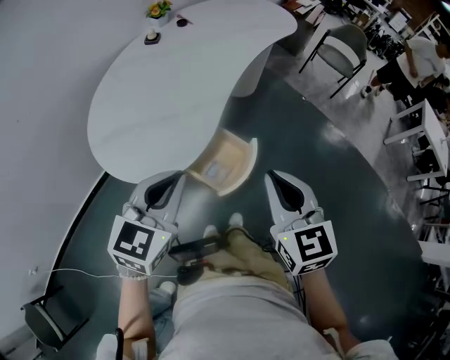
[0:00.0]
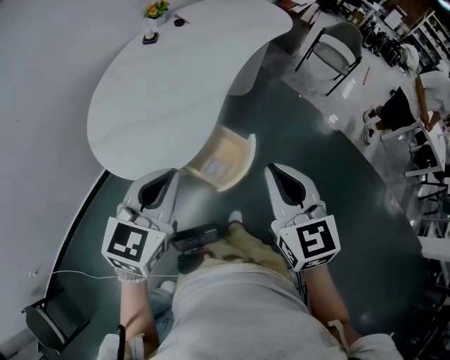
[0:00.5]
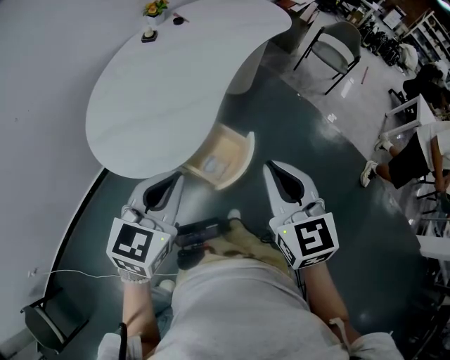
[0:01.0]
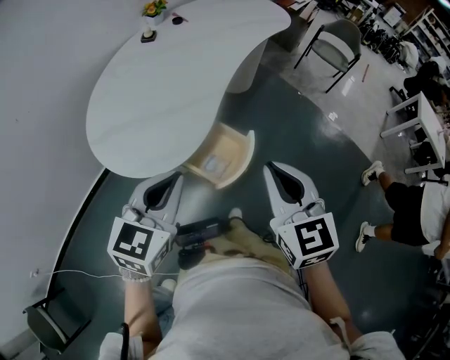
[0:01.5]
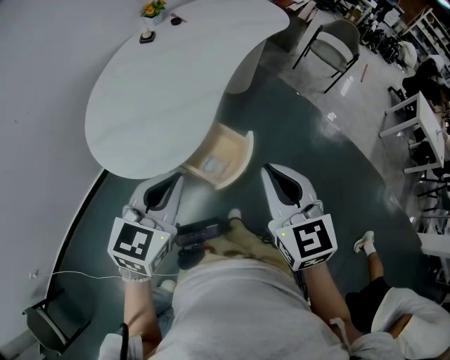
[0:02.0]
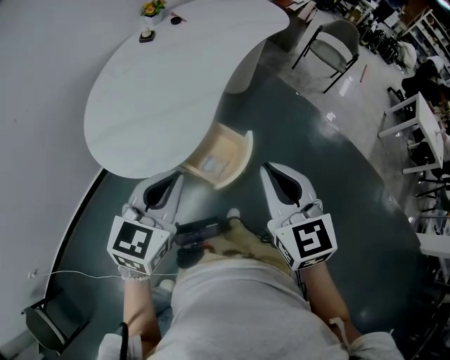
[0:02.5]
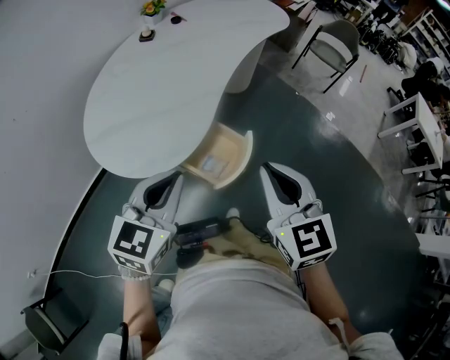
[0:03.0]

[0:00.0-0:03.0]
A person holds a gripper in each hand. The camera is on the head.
0:00.0 to 0:01.5: The grippers move only a little.
0:01.5 to 0:03.0: Both grippers stay about where they are.

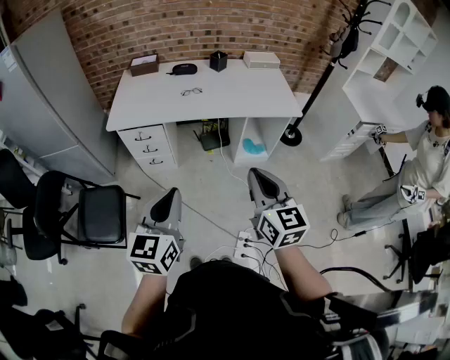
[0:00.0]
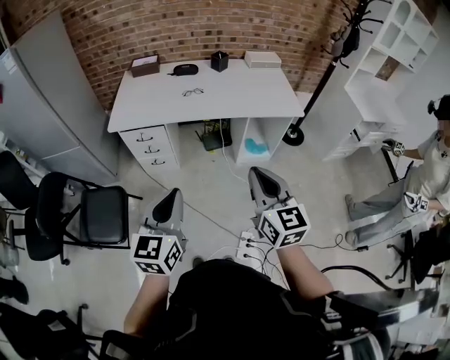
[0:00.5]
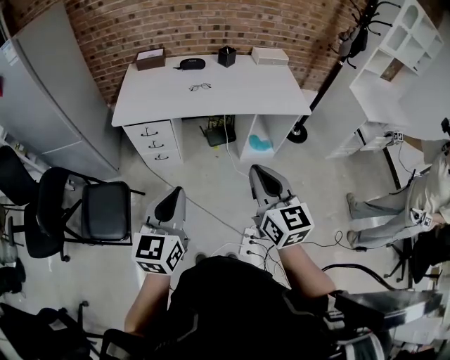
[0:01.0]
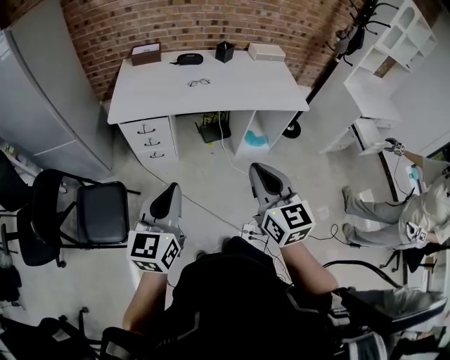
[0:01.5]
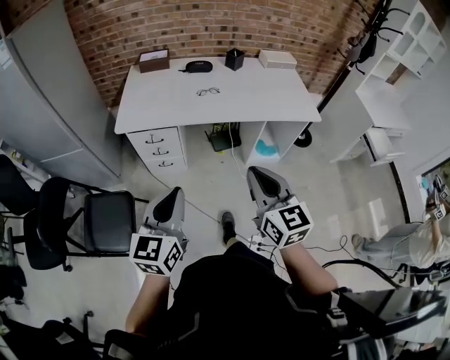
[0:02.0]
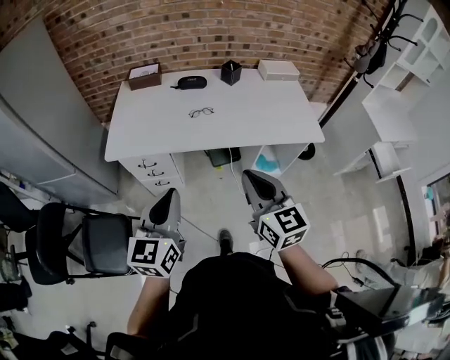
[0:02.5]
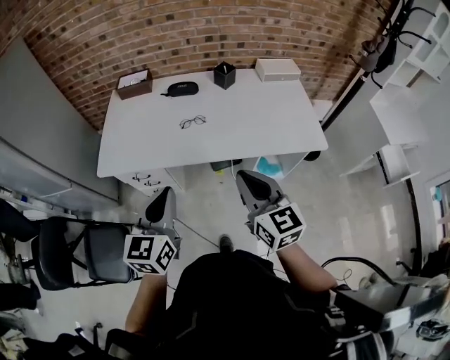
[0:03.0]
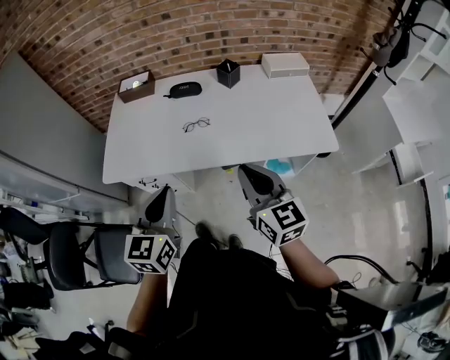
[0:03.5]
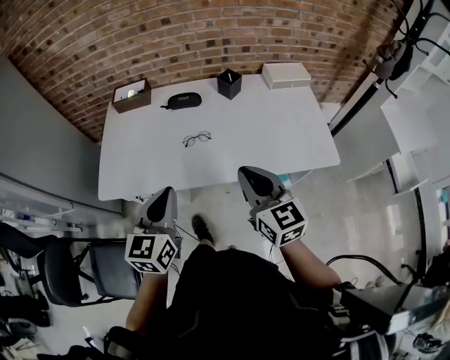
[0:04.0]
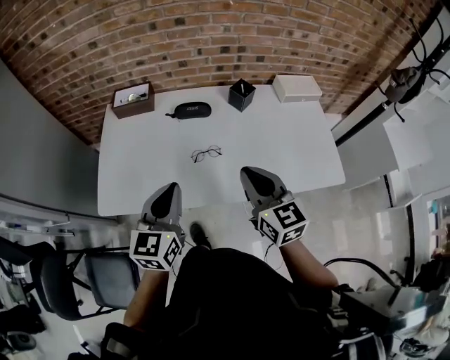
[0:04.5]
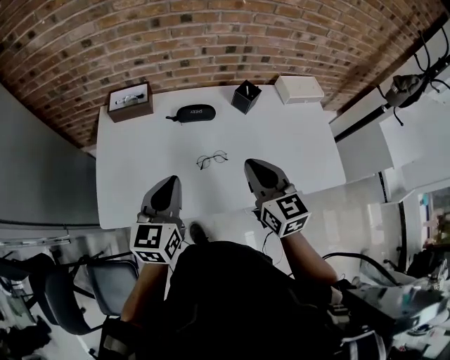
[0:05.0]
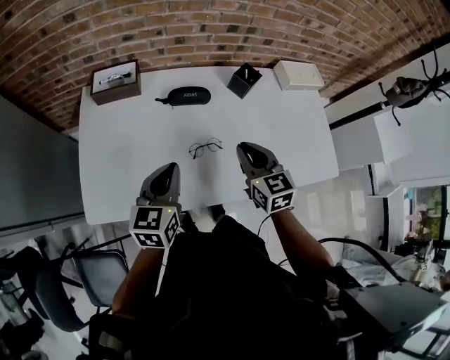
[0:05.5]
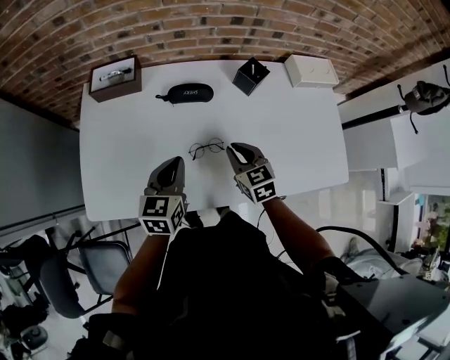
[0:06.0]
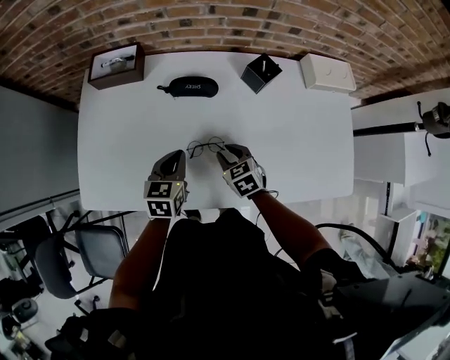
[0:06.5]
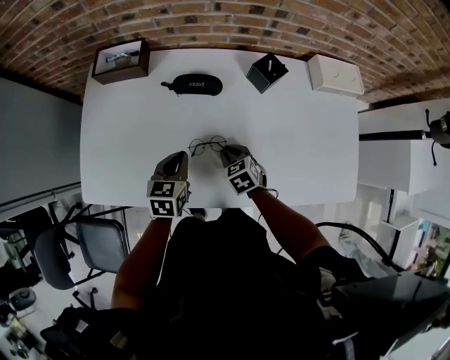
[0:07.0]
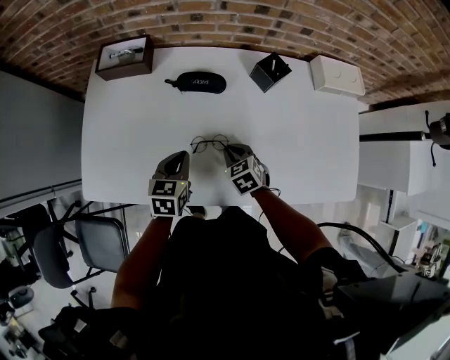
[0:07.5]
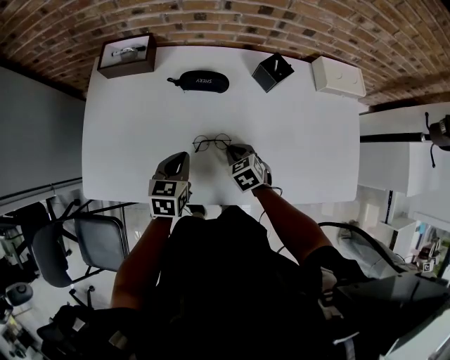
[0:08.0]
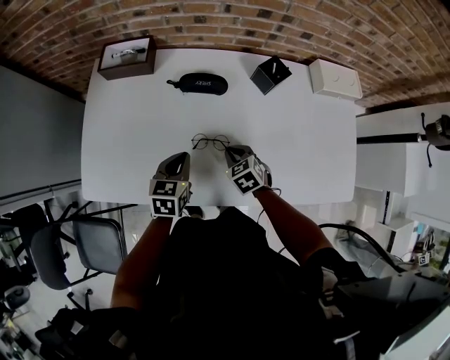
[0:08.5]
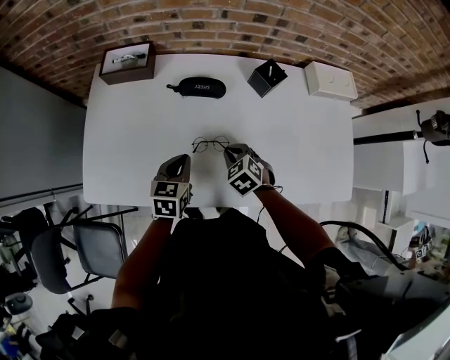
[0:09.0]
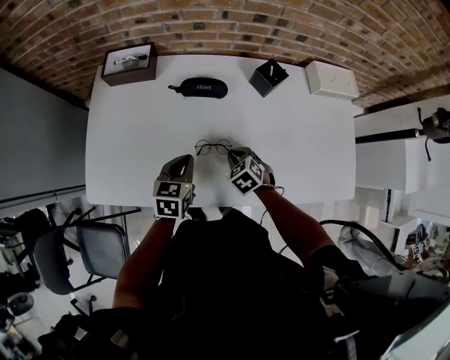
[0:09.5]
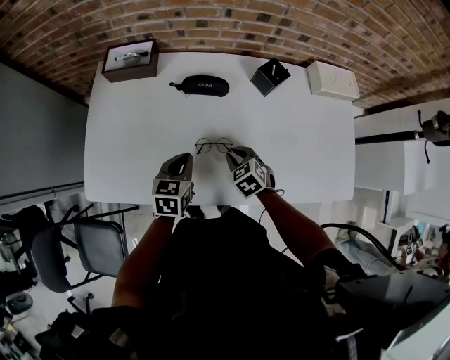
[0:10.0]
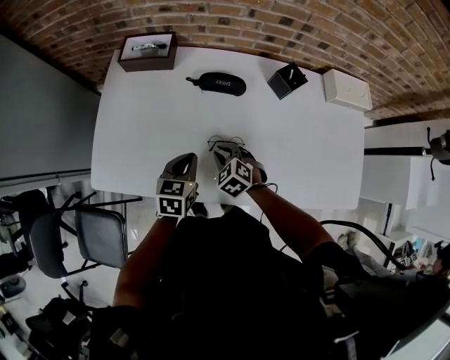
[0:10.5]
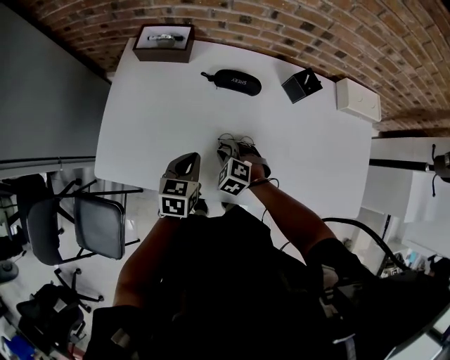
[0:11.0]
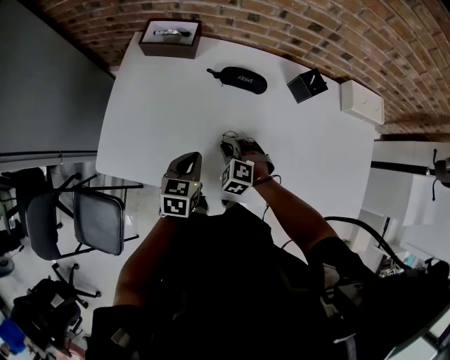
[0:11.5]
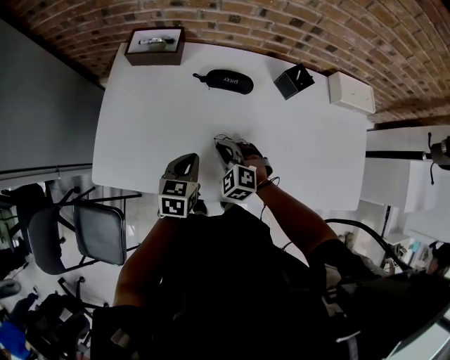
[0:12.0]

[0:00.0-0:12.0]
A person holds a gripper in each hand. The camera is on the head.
0:00.0 to 0:02.0: Both grippers move to the left and forward, some 15 cm.
0:02.0 to 0:04.0: Both grippers travel together forward, approximately 35 cm.
0:04.0 to 0:06.0: The two grippers go some 30 cm forward and downward. The right gripper rotates roughly 30 degrees.
0:06.0 to 0:08.0: The grippers both shift downward by about 10 cm. The right gripper changes its angle by some 30 degrees.
0:08.0 to 0:10.0: The grippers stay close to where they were, moving slightly.
0:10.0 to 0:12.0: The right gripper goes roughly 10 cm to the left, and swivels about 40 degrees.

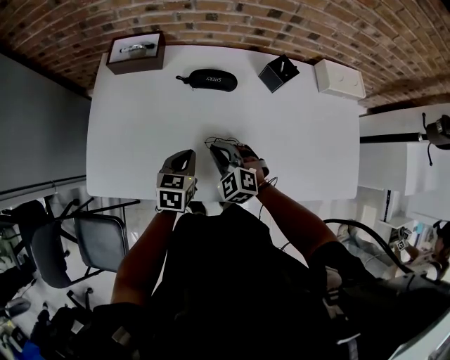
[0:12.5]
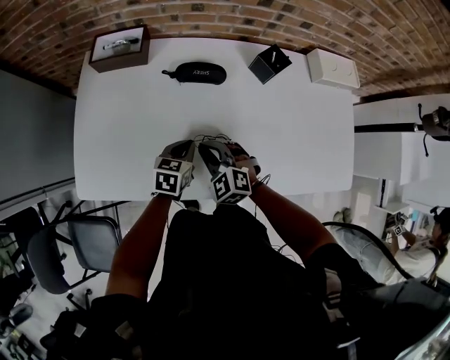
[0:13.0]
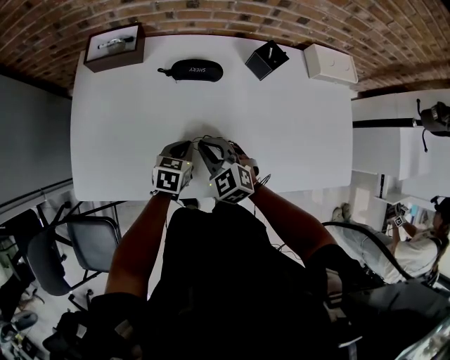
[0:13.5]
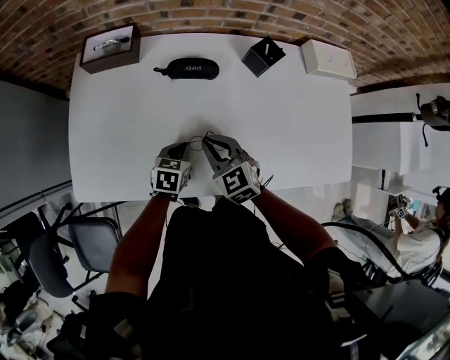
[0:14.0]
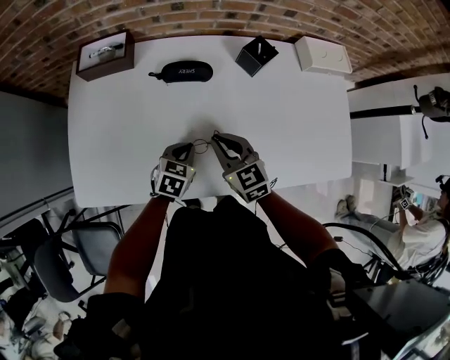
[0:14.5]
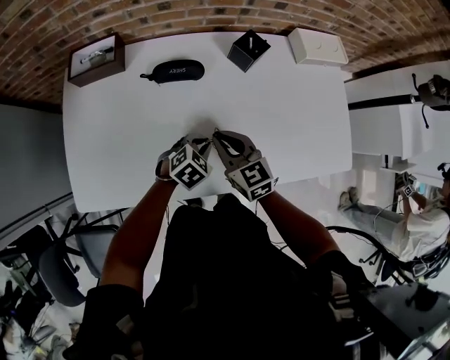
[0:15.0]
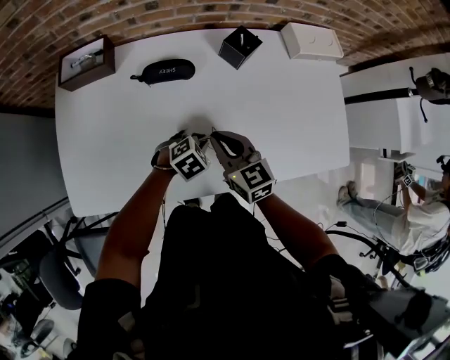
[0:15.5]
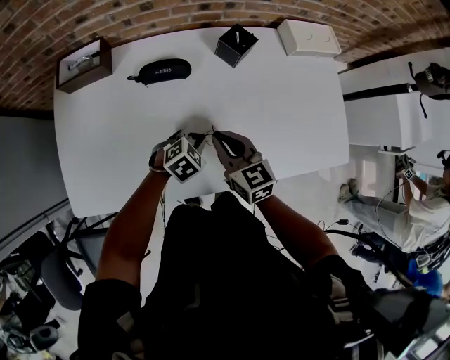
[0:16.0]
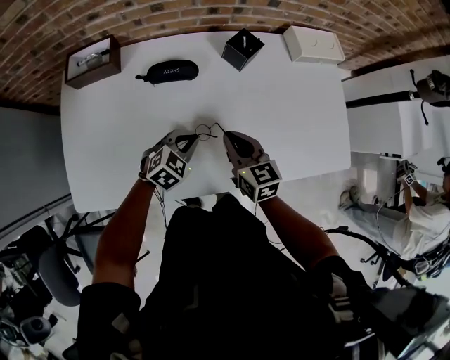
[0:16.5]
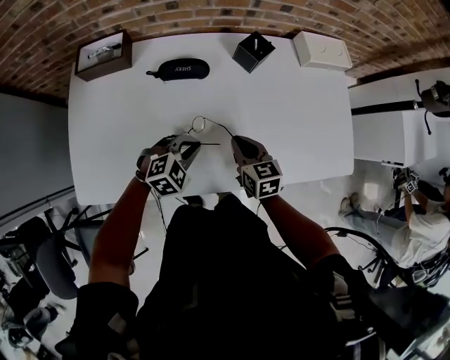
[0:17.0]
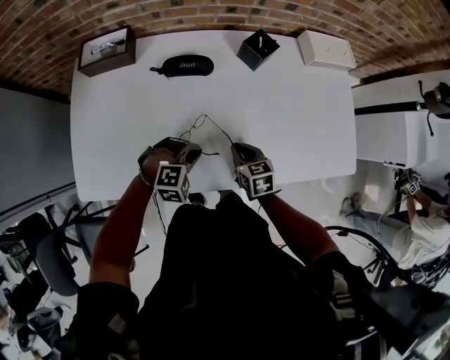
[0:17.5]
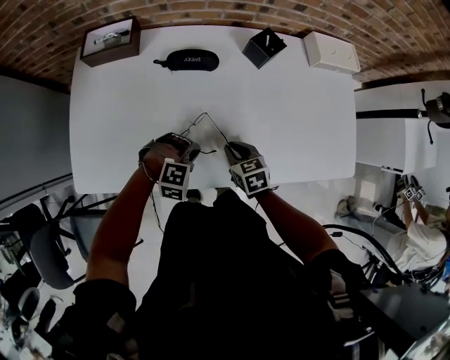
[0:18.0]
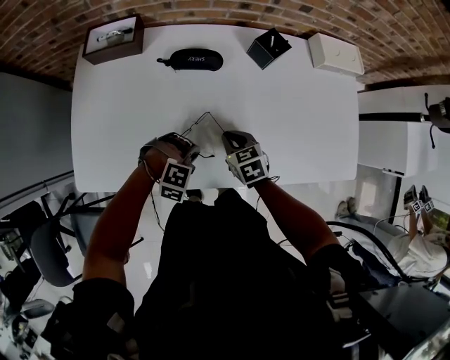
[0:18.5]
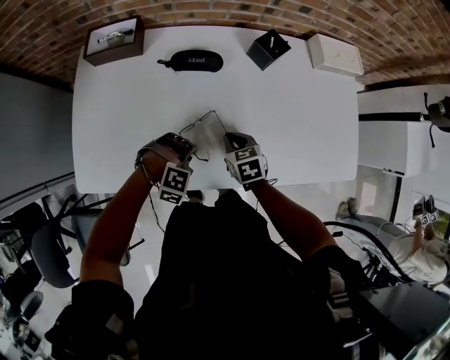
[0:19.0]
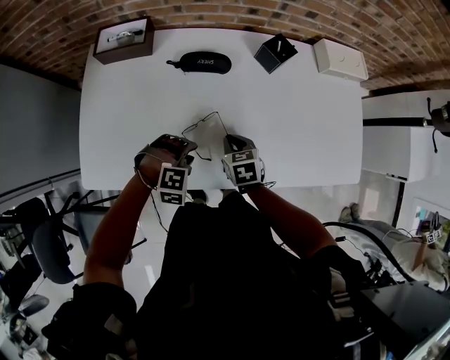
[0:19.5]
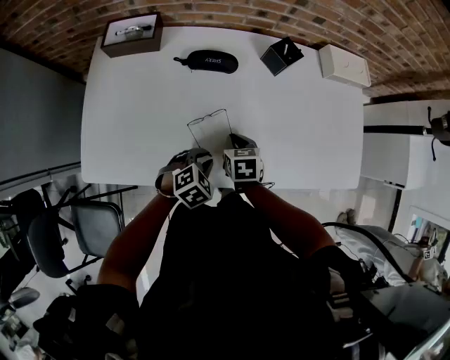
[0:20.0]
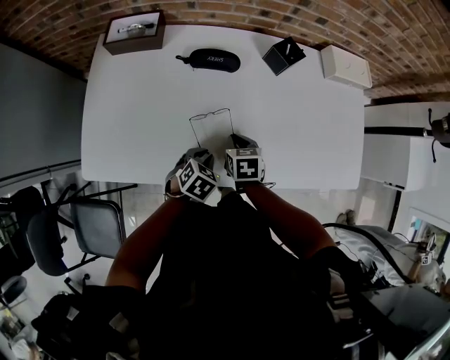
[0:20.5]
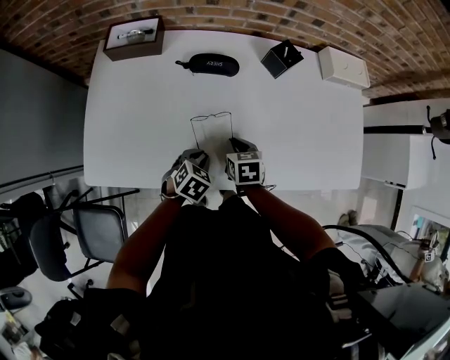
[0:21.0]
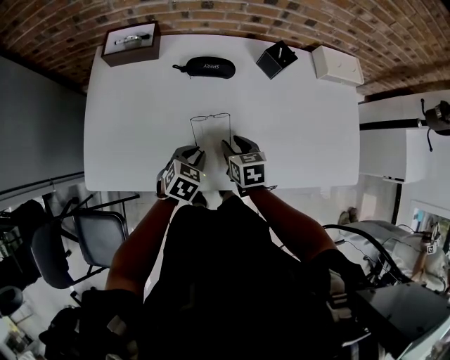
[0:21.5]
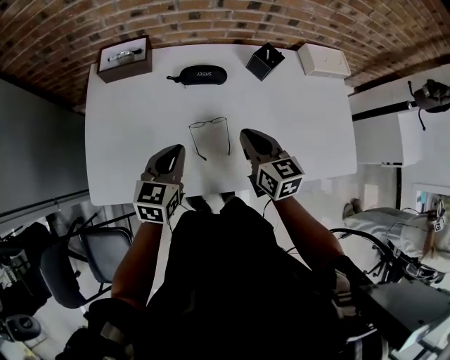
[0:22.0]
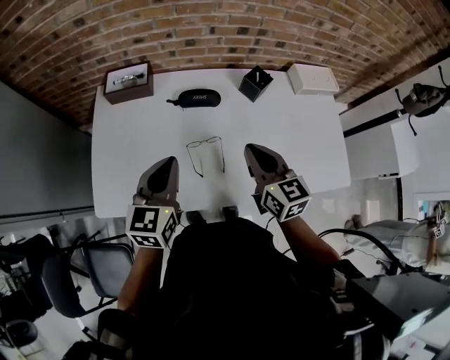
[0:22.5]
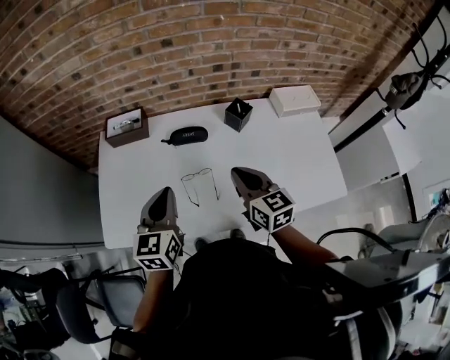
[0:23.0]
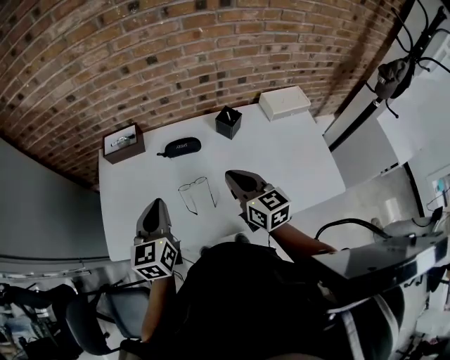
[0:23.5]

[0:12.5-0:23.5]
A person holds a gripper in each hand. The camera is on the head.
0:12.5 to 0:14.5: The two grippers go about 5 cm to the right. The right gripper swivels roughly 40 degrees, while the left gripper rotates some 20 degrees.
0:14.5 to 0:16.0: The right gripper travels to the right by approximately 5 cm. The left gripper shifts approximately 10 cm to the right, and swivels roughly 40 degrees.
0:16.0 to 0:18.0: The right gripper is displaced downward by approximately 10 cm, and swivels some 30 degrees, while the left gripper travels backward and to the left by approximately 10 cm, and rotates around the line of its fingers by some 40 degrees, clockwise from behind.
0:18.0 to 0:20.0: The left gripper twists approximately 50 degrees counterclockwise, seen from behind.
0:20.0 to 0:21.5: The left gripper shifts by some 5 cm, and rotates about 30 degrees. Meanwhile the right gripper opens its fingers.
0:21.5 to 0:23.5: Both grippers move upward, approximately 25 cm. The left gripper tips its fingers upward by roughly 40 degrees. The right gripper points its fingers some 40 degrees further upward, and closes up.

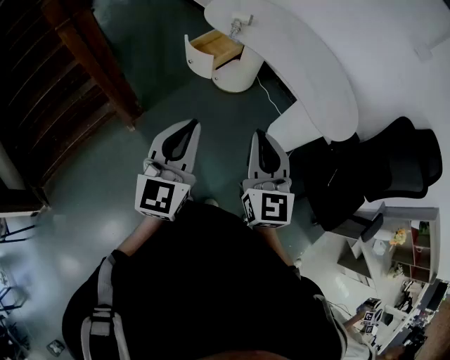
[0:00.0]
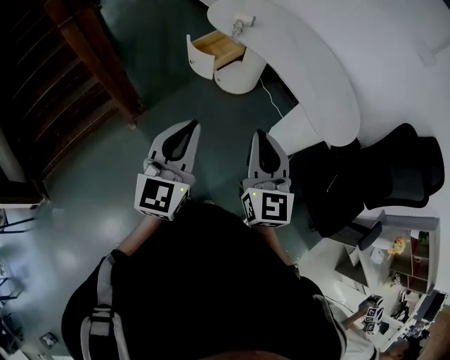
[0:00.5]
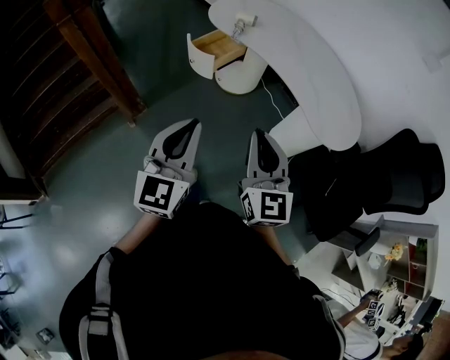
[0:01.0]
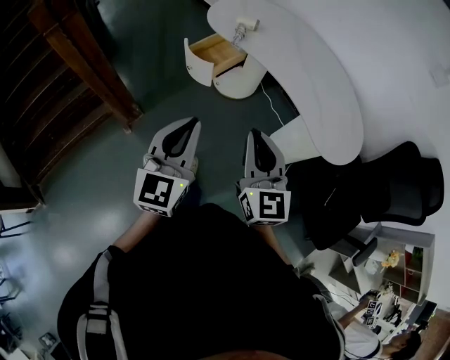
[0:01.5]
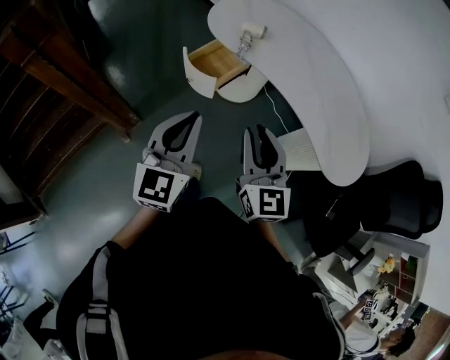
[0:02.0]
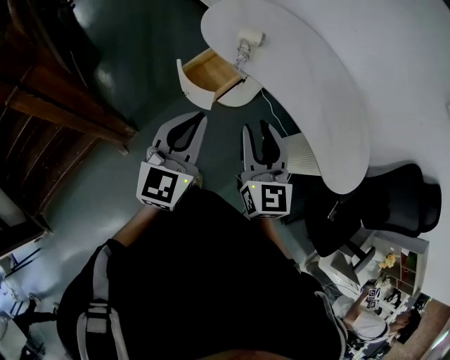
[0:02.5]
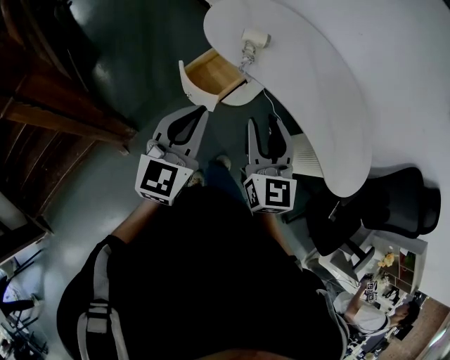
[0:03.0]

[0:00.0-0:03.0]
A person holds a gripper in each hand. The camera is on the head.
0:00.0 to 0:01.5: Both grippers move forward, about 10 cm.
0:01.5 to 0:03.0: Both grippers move forward, roughly 30 cm. The right gripper opens up.
